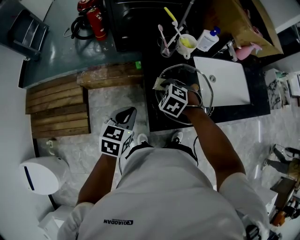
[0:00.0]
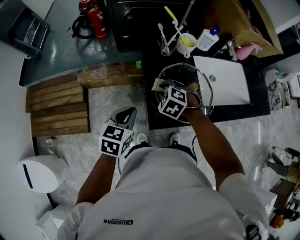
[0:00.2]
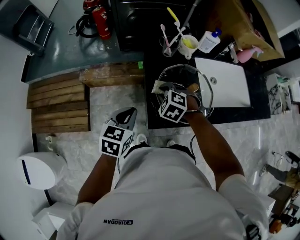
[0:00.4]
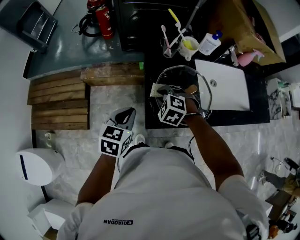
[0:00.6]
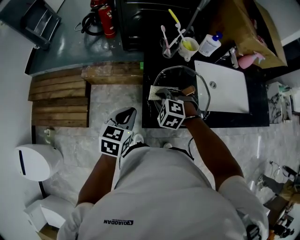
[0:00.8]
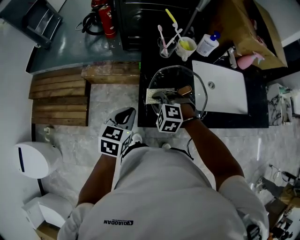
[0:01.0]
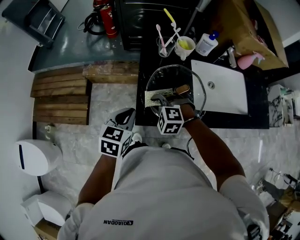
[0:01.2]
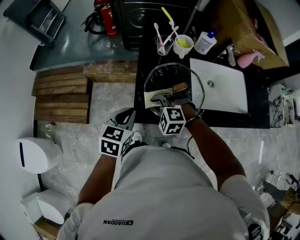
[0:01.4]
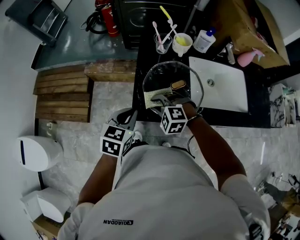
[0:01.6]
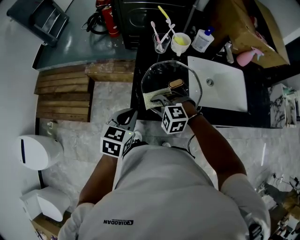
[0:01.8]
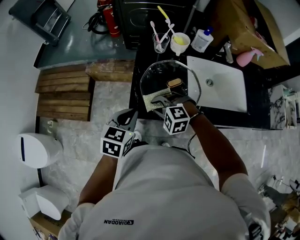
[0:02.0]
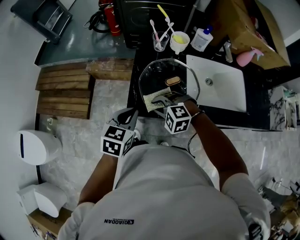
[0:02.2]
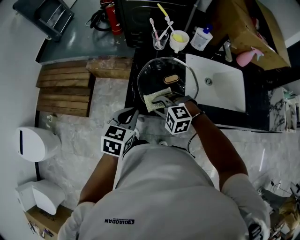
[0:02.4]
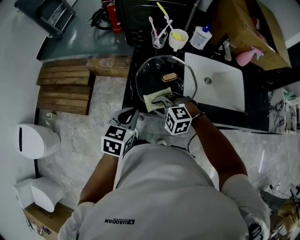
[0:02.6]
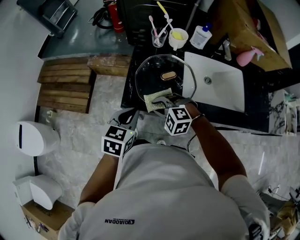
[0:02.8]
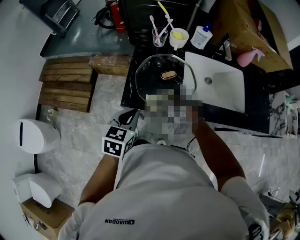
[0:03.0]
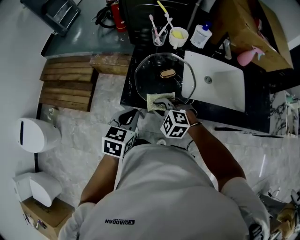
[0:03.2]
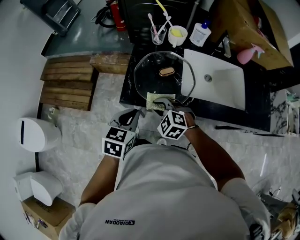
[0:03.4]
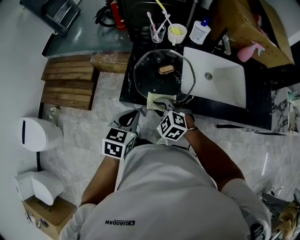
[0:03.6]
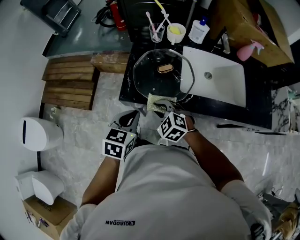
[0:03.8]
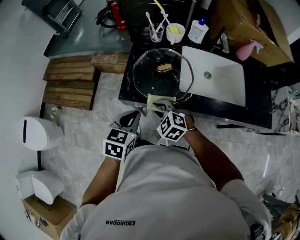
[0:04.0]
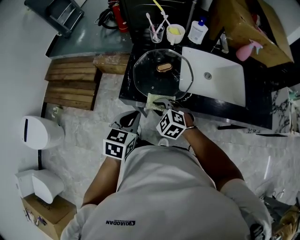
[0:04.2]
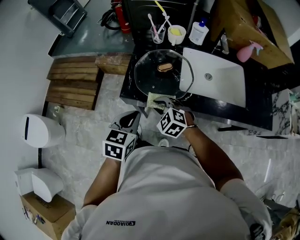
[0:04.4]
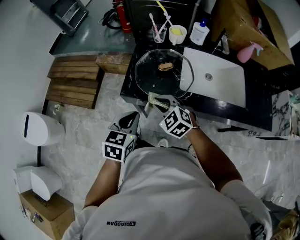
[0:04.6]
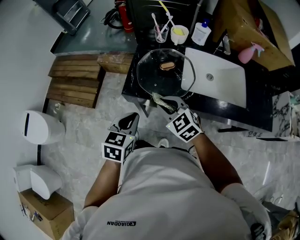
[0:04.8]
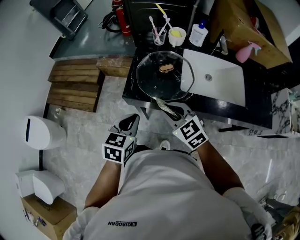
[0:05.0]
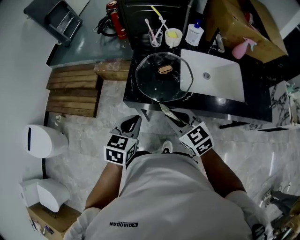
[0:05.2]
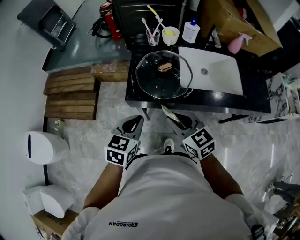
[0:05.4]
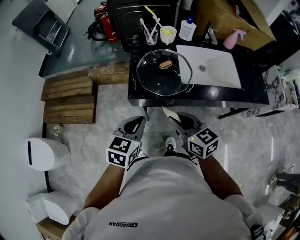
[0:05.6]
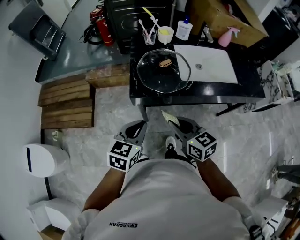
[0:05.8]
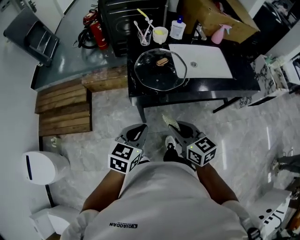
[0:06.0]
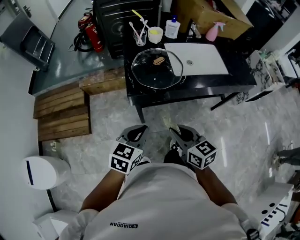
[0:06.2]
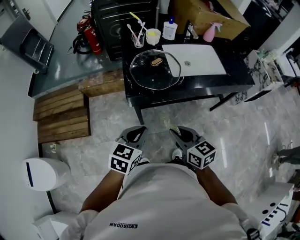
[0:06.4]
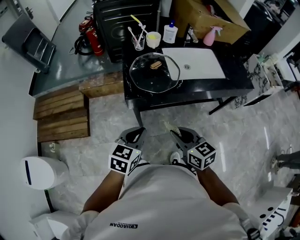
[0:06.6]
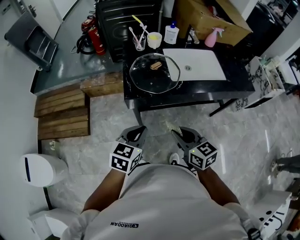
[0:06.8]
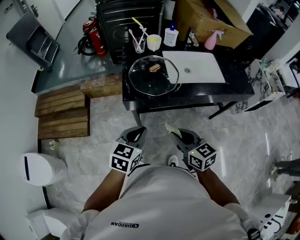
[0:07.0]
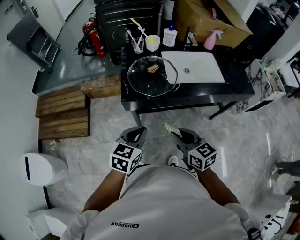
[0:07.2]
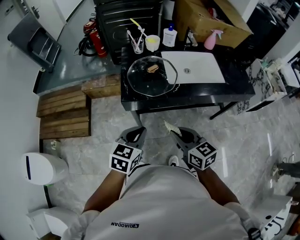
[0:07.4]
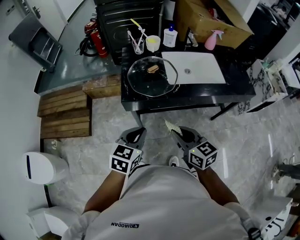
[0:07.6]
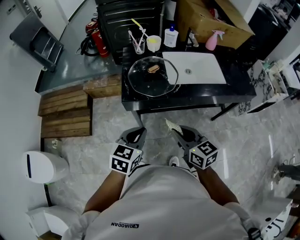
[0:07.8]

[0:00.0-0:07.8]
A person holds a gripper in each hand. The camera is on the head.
0:00.0 to 0:01.6: The left gripper goes roughly 10 cm to the right and backward. The right gripper goes some 10 cm backward, and swivels some 40 degrees.
0:01.6 to 0:03.2: The left gripper moves backward and to the right, some 10 cm. Meanwhile the right gripper travels backward by approximately 10 cm.
0:03.2 to 0:04.6: The right gripper moves approximately 5 cm. Meanwhile the left gripper is displaced backward by roughly 5 cm.
0:04.6 to 0:06.2: The right gripper changes place by some 20 cm, and rolls clockwise, seen from behind, by approximately 50 degrees; the left gripper shifts by roughly 15 cm, and changes its angle by some 30 degrees.
0:06.2 to 0:07.8: Both grippers move to the right, about 5 cm.

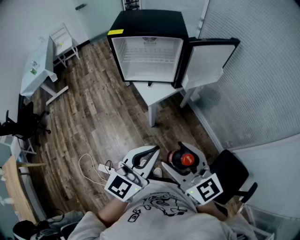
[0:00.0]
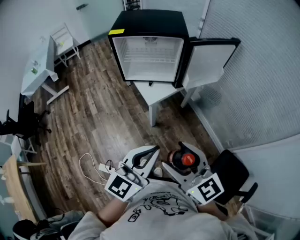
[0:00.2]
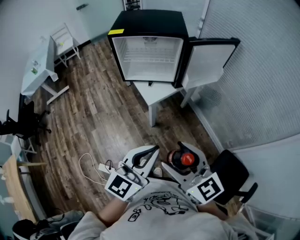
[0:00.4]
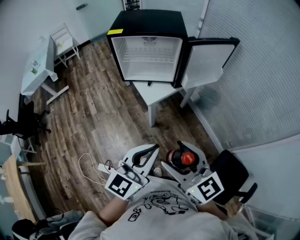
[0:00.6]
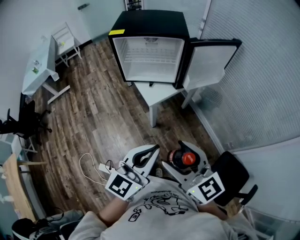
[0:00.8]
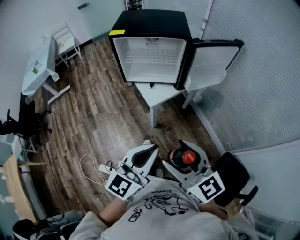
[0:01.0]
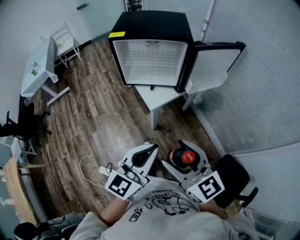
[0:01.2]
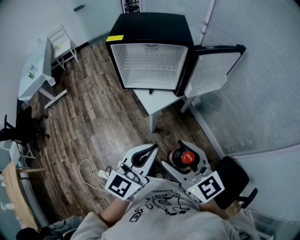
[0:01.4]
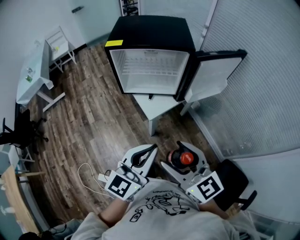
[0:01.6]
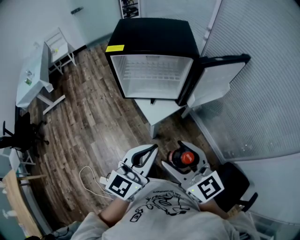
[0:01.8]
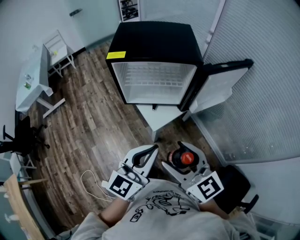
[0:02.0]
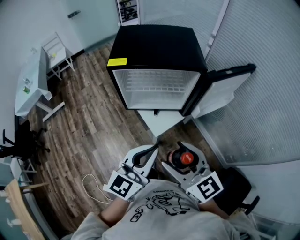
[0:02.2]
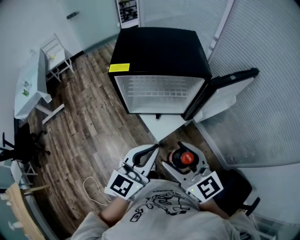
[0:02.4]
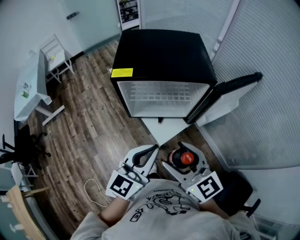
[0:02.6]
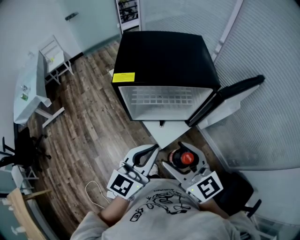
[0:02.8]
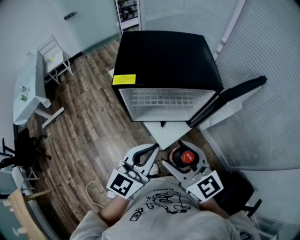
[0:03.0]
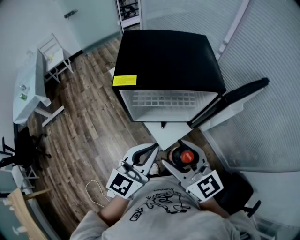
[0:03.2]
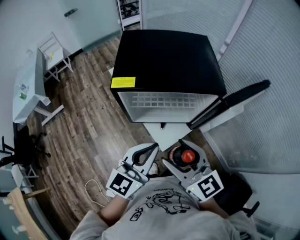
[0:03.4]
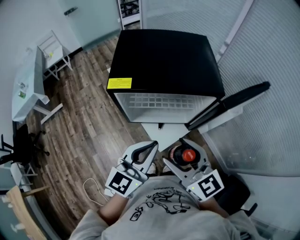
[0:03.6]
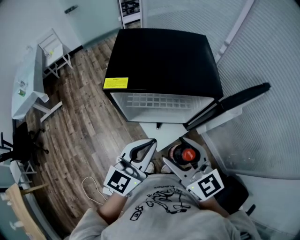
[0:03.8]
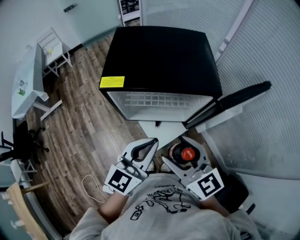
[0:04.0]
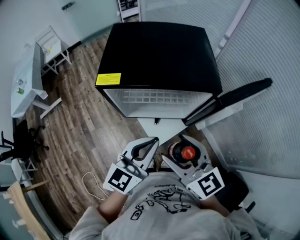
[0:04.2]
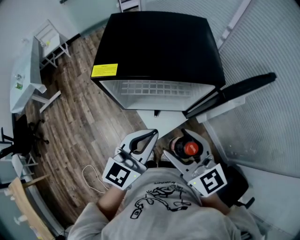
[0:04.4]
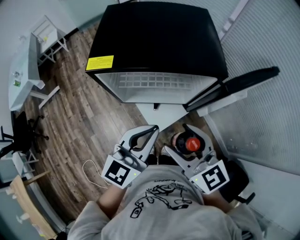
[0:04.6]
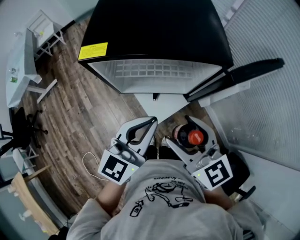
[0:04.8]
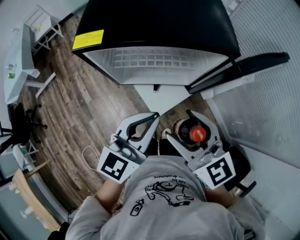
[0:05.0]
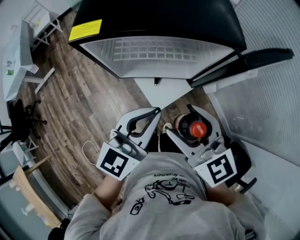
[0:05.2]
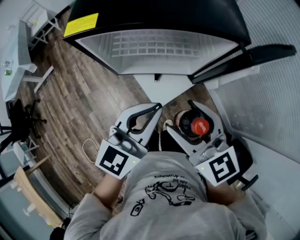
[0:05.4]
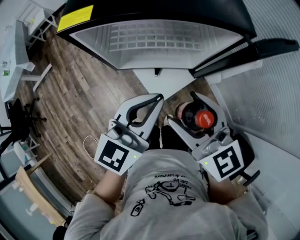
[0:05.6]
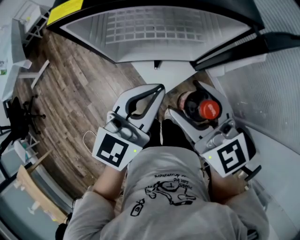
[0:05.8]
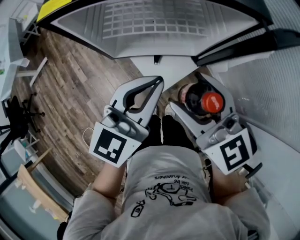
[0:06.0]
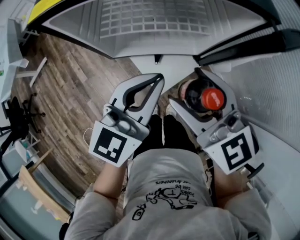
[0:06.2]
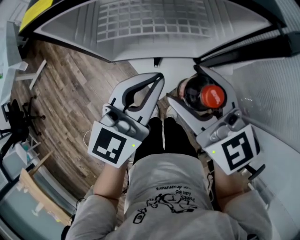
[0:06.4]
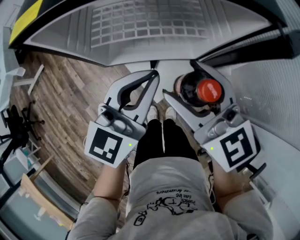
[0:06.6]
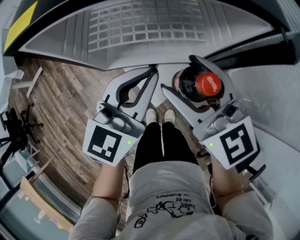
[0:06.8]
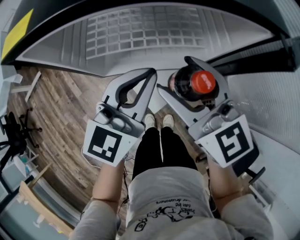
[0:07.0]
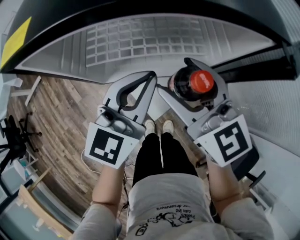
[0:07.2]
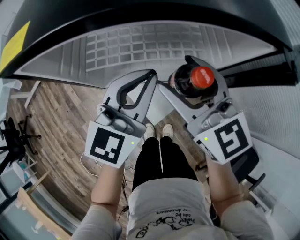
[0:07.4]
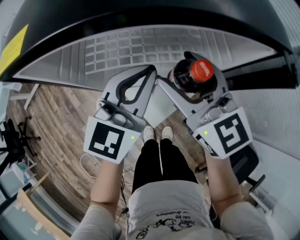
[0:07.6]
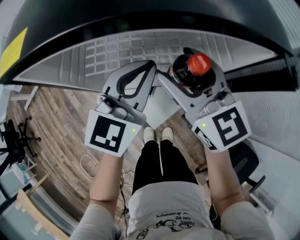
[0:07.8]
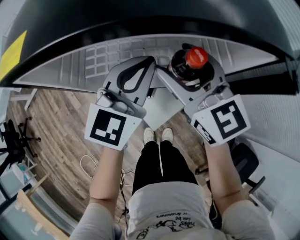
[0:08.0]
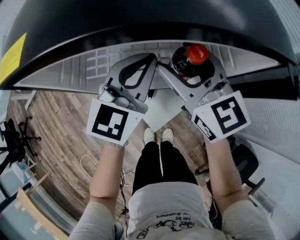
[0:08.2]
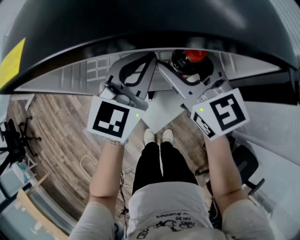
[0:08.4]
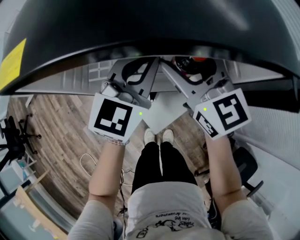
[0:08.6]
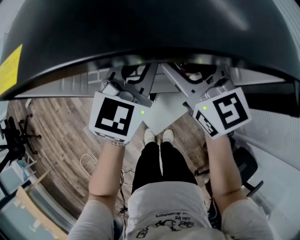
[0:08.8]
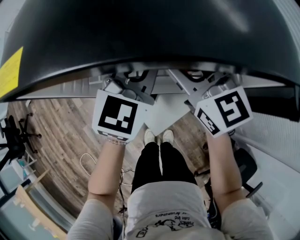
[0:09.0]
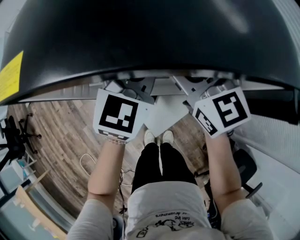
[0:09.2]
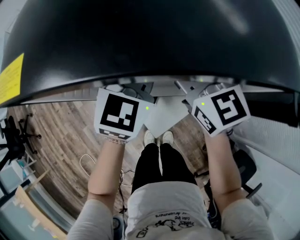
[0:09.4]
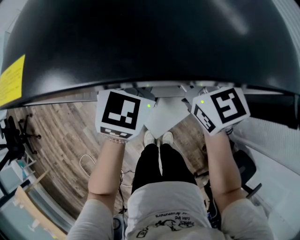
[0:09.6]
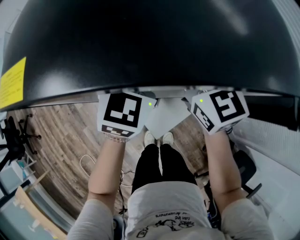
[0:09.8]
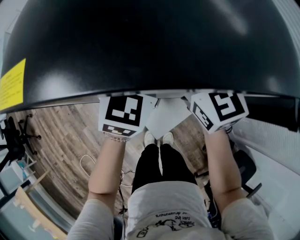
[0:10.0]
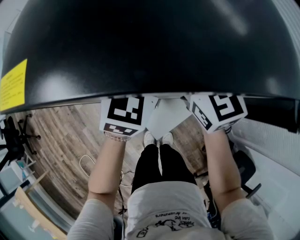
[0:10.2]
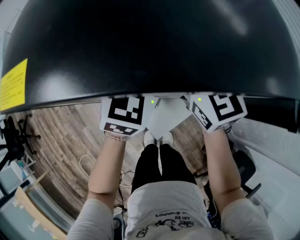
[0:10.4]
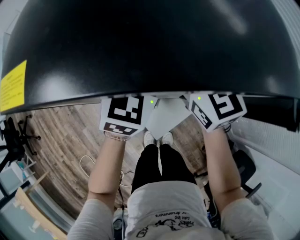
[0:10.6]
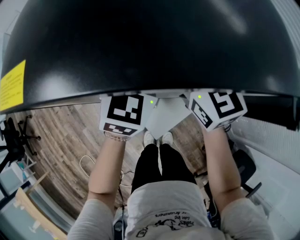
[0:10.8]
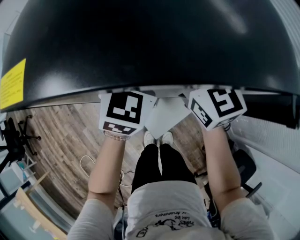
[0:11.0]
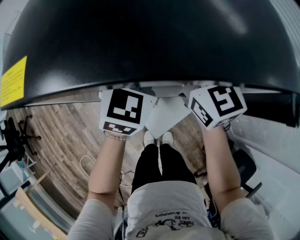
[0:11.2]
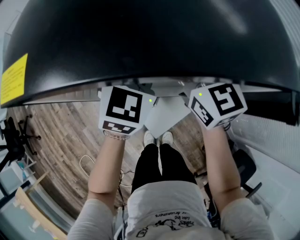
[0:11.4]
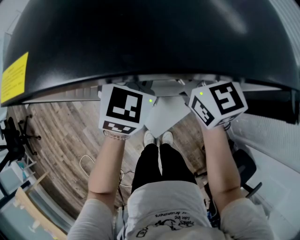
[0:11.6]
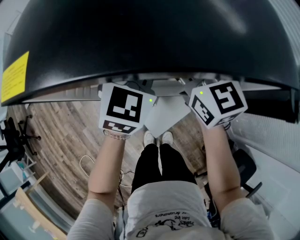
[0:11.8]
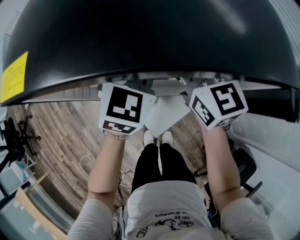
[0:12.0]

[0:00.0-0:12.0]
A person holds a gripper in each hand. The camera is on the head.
0:00.0 to 0:01.6: The grippers both shift forward by approximately 10 cm.
0:01.6 to 0:03.0: The right gripper heads forward and to the left, covering some 25 cm, while the left gripper moves forward, roughly 20 cm.
0:03.0 to 0:04.4: The right gripper heads to the right, covering some 5 cm, while the left gripper changes place by roughly 5 cm.
0:04.4 to 0:06.0: The grippers both shift downward by roughly 10 cm.
0:06.0 to 0:07.6: The grippers both shift forward by about 15 cm.
0:07.6 to 0:09.0: The two grippers go roughly 5 cm forward.
0:09.0 to 0:12.0: The grippers make only small movements.

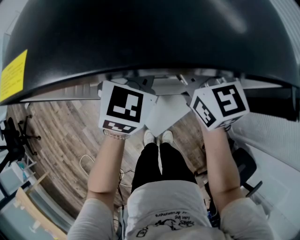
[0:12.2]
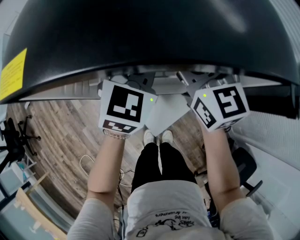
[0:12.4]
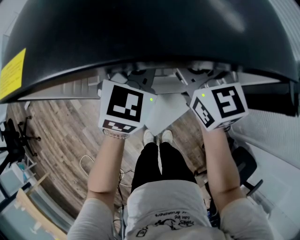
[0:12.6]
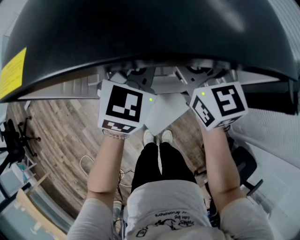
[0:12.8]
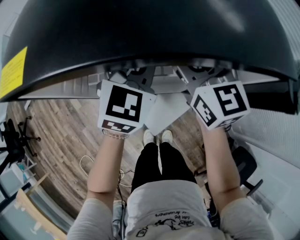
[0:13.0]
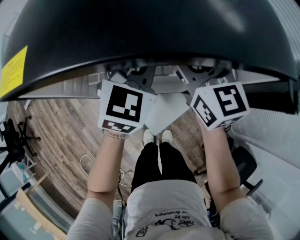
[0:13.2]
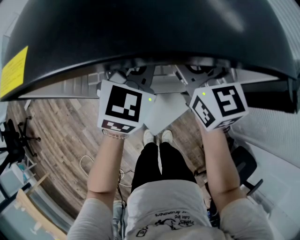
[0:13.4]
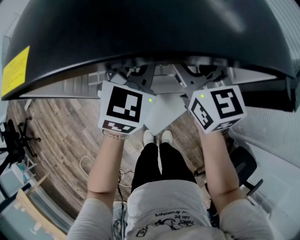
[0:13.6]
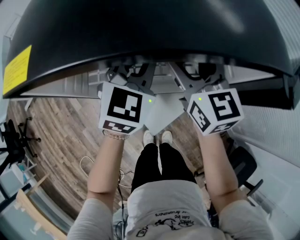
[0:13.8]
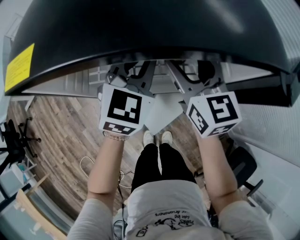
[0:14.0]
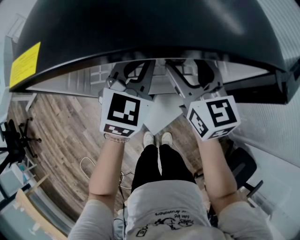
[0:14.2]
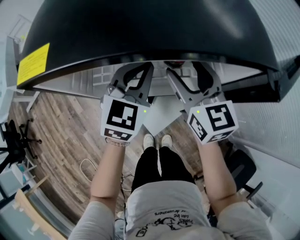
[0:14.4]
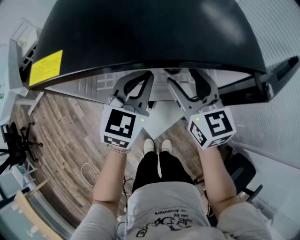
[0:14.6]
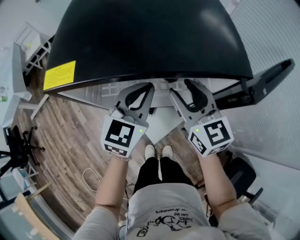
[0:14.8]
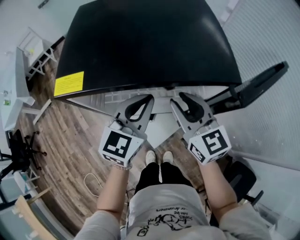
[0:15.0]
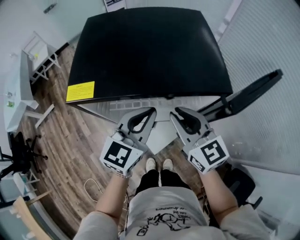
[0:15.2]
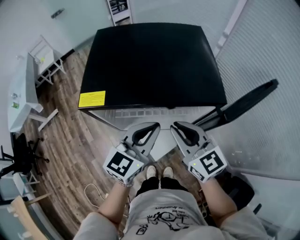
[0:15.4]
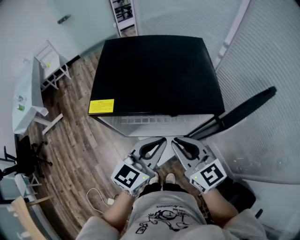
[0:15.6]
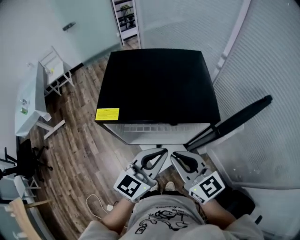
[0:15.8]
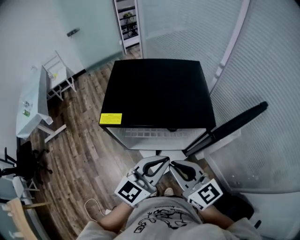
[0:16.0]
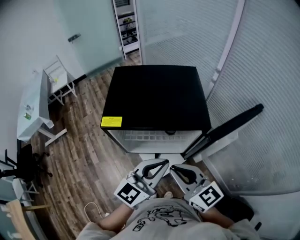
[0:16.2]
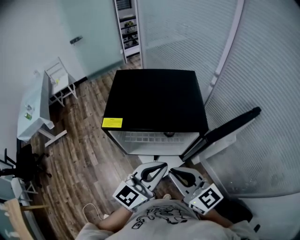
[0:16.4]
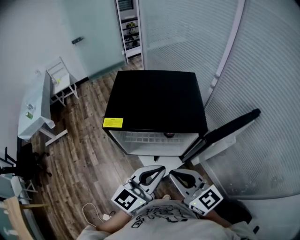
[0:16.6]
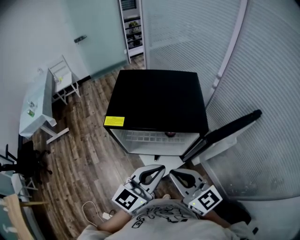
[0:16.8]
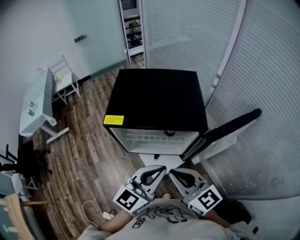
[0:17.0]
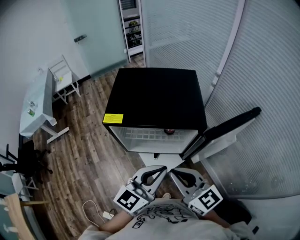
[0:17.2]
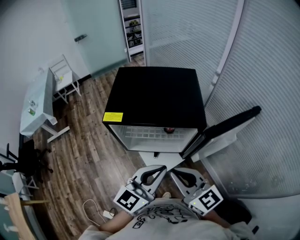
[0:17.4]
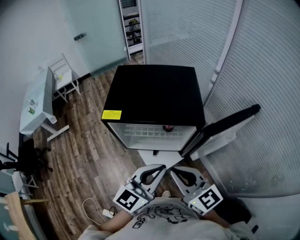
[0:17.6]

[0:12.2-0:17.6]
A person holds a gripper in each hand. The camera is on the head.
0:12.2 to 0:13.6: The grippers make only small movements.
0:13.6 to 0:15.0: The left gripper is displaced backward and upward by approximately 10 cm, while the right gripper is displaced backward by about 10 cm, and closes its fingers.
0:15.0 to 0:16.2: The two grippers go about 20 cm backward and upward.
0:16.2 to 0:17.6: There are only small adjustments of the grippers.
